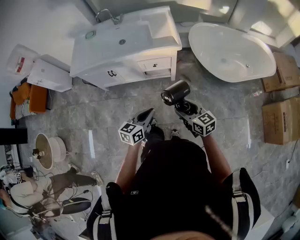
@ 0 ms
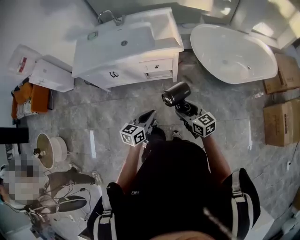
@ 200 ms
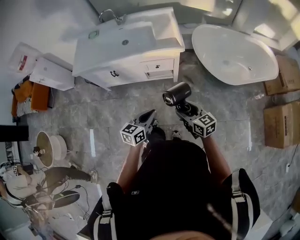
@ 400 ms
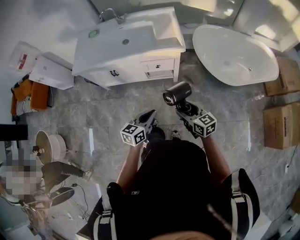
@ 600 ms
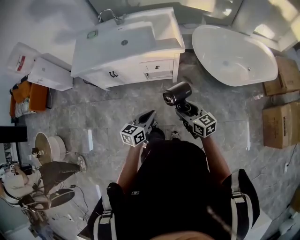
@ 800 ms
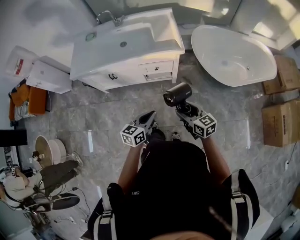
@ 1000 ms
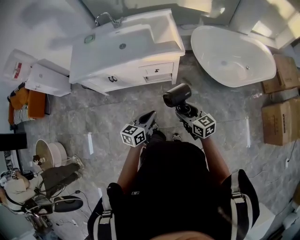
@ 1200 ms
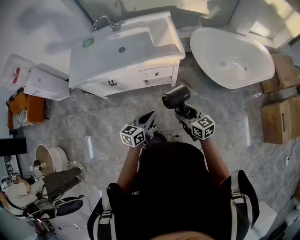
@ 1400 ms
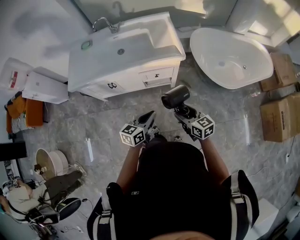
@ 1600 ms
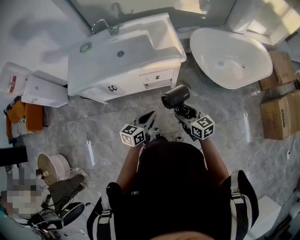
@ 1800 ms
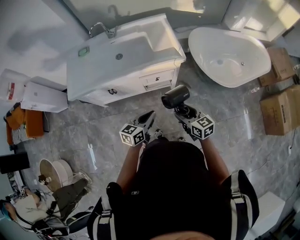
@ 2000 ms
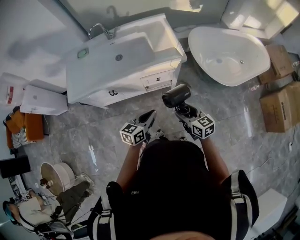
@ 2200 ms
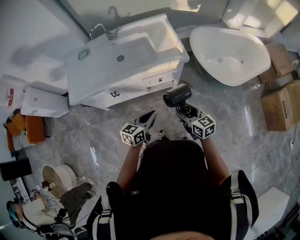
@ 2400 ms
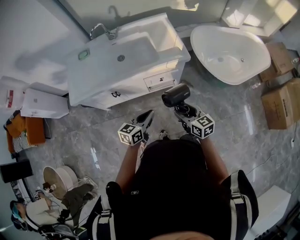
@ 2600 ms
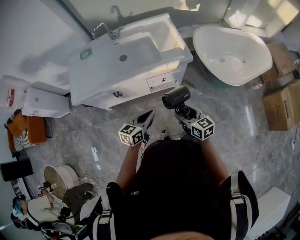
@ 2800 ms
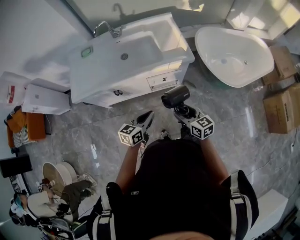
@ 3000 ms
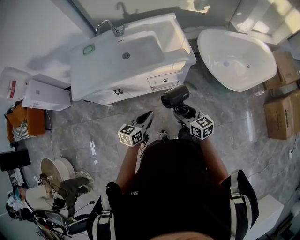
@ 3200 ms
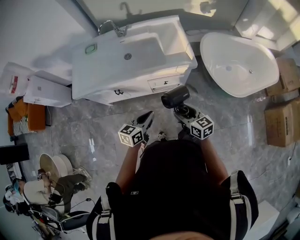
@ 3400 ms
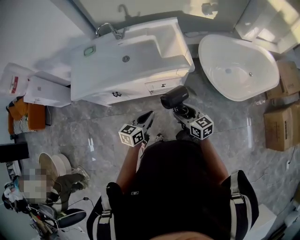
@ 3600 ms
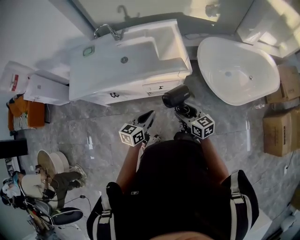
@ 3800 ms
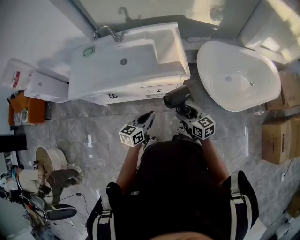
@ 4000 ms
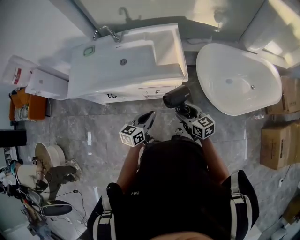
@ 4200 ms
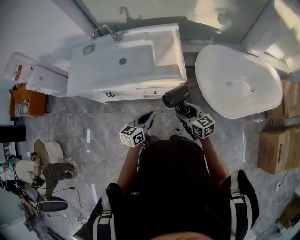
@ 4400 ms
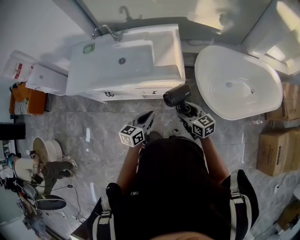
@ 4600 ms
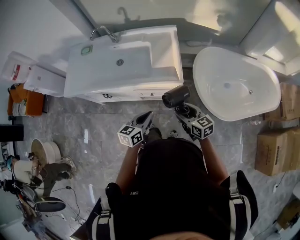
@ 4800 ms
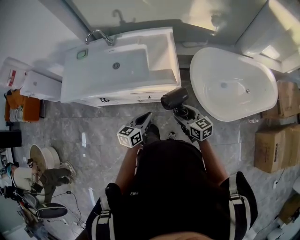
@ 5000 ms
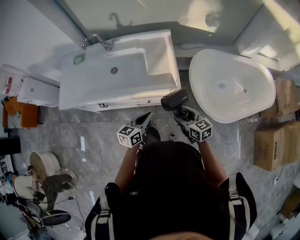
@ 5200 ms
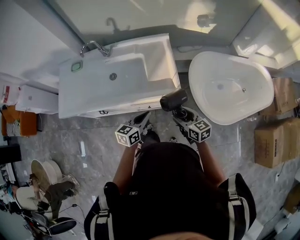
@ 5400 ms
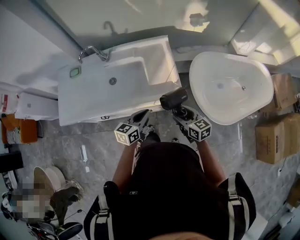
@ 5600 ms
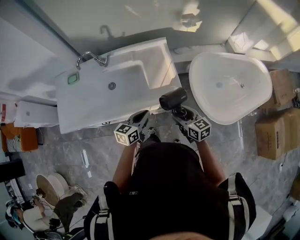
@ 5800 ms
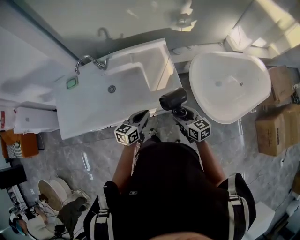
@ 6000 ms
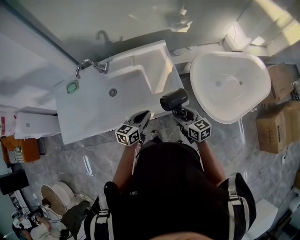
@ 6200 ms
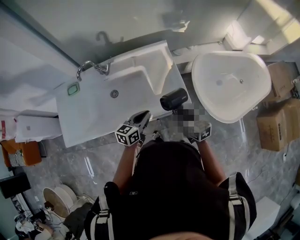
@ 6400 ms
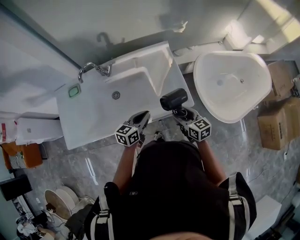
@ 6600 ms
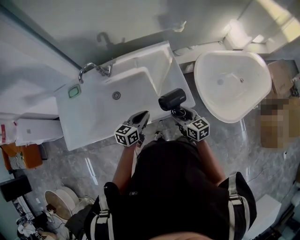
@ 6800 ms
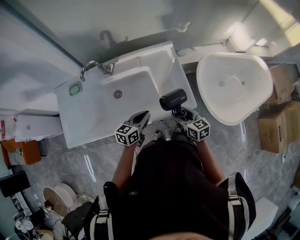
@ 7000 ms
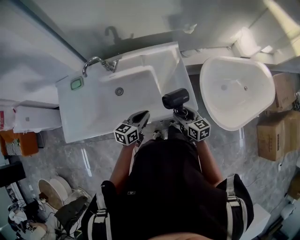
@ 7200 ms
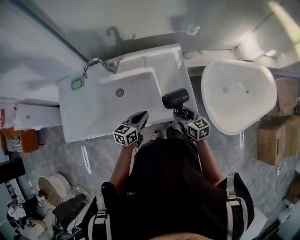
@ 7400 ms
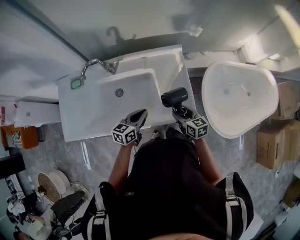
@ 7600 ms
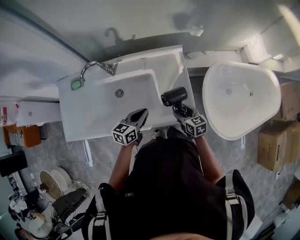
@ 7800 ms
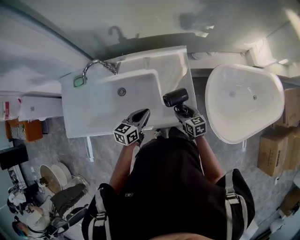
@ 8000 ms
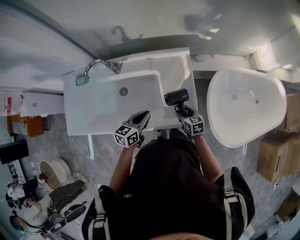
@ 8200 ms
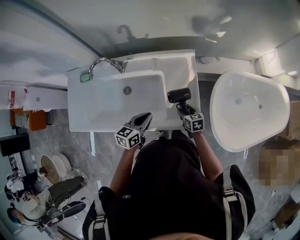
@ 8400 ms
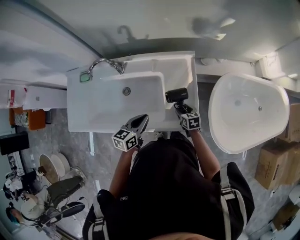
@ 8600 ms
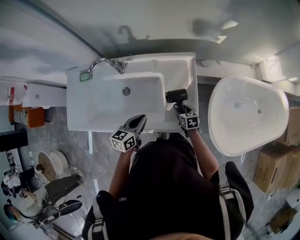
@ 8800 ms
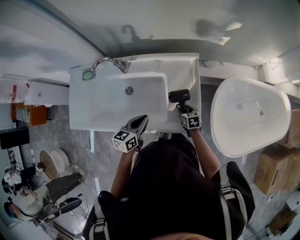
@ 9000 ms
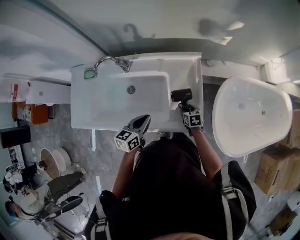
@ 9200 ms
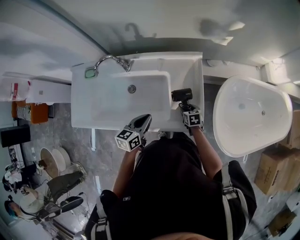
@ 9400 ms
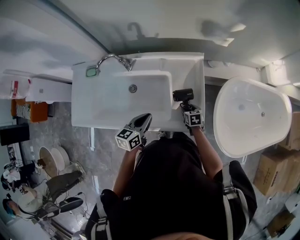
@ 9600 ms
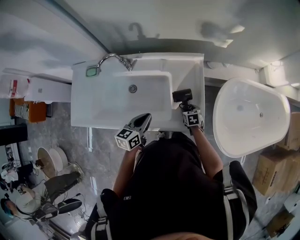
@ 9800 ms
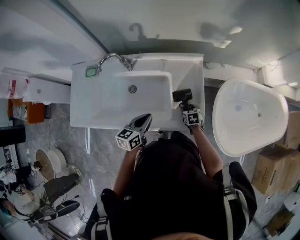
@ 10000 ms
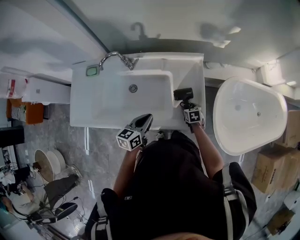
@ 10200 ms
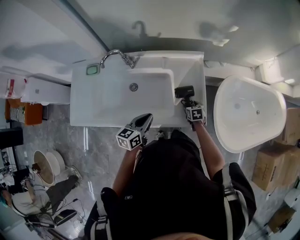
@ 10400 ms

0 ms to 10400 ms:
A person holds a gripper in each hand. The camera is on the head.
0 ms to 1400 ms: The two grippers go roughly 5 cm forward.
1400 ms to 3000 ms: Both grippers travel together to the left and forward, about 15 cm.
3000 ms to 4400 ms: The two grippers go about 20 cm to the right and forward.
4400 ms to 6000 ms: Both grippers travel together forward, about 15 cm.
6000 ms to 7400 ms: The left gripper moves to the left and forward, about 10 cm; the right gripper moves forward and to the left, approximately 10 cm.
7400 ms to 9000 ms: The right gripper shifts about 20 cm downward and forward, and turns by some 20 degrees.
9000 ms to 10400 ms: The grippers make only small movements.

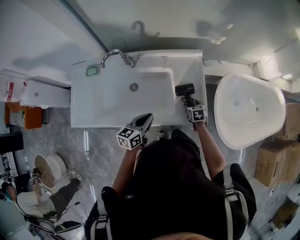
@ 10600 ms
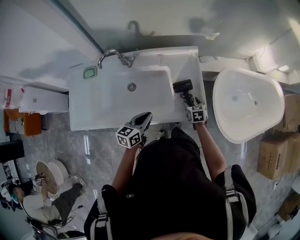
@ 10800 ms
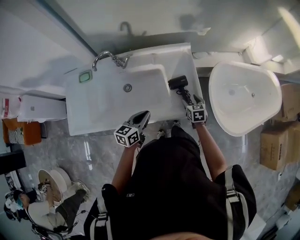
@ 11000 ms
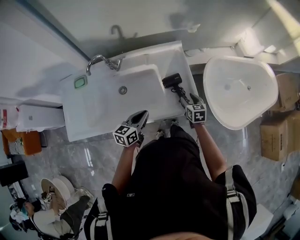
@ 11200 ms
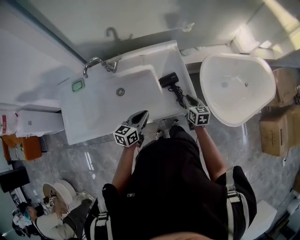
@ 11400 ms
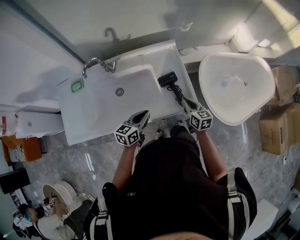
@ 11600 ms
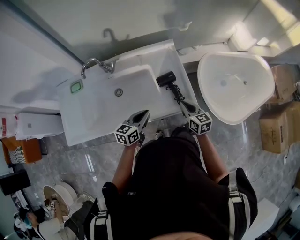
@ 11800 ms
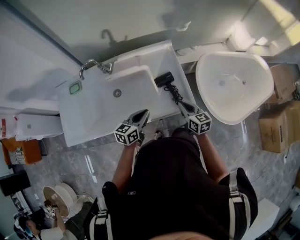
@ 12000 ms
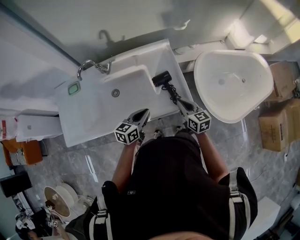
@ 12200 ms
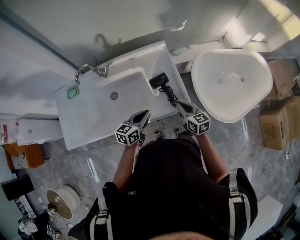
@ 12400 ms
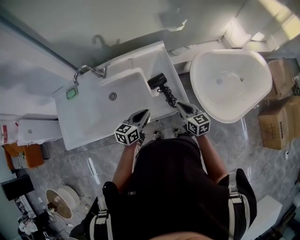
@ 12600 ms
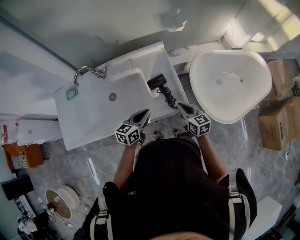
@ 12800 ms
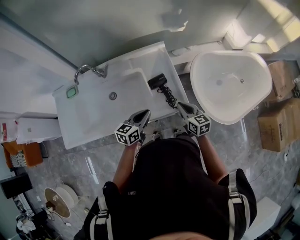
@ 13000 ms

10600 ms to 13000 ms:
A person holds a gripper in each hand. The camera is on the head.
10600 ms to 11800 ms: The right gripper moves upward and backward, roughly 20 cm, angles its fingers upward, by roughly 30 degrees, and closes.
11800 ms to 13000 ms: The left gripper heads to the right, covering roughly 5 cm.

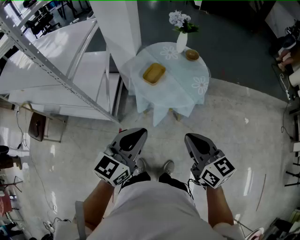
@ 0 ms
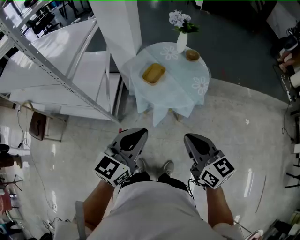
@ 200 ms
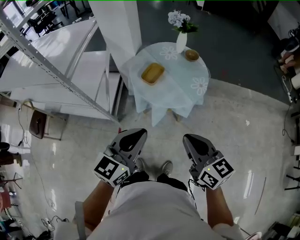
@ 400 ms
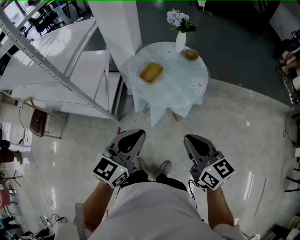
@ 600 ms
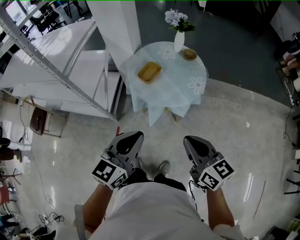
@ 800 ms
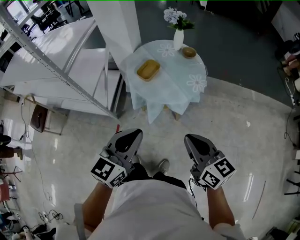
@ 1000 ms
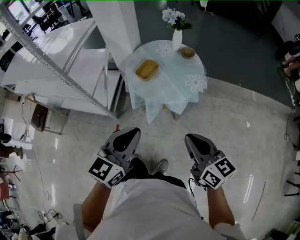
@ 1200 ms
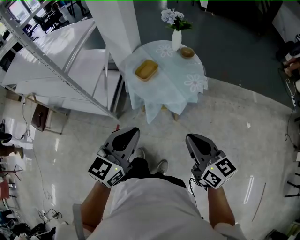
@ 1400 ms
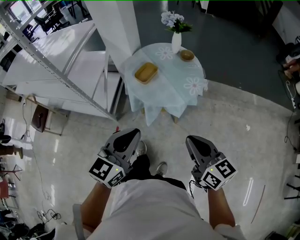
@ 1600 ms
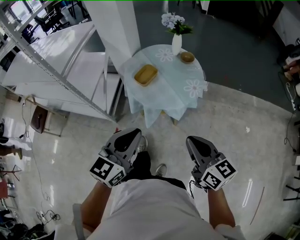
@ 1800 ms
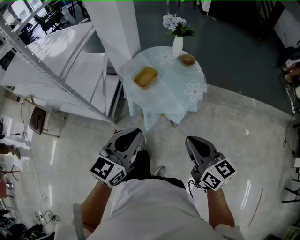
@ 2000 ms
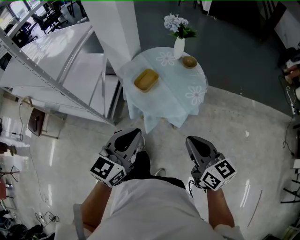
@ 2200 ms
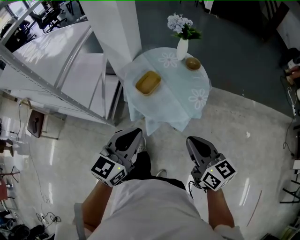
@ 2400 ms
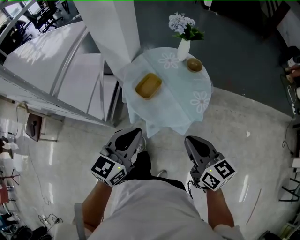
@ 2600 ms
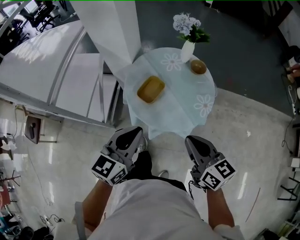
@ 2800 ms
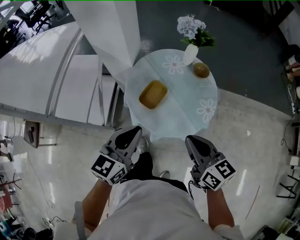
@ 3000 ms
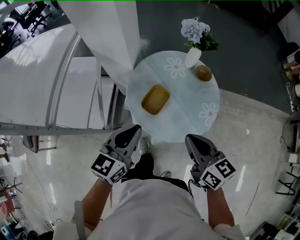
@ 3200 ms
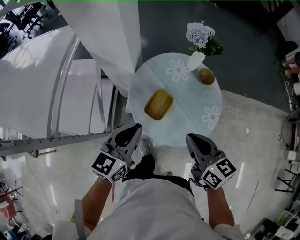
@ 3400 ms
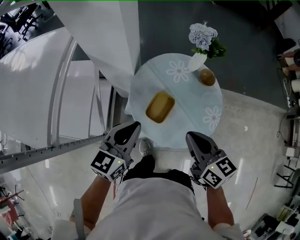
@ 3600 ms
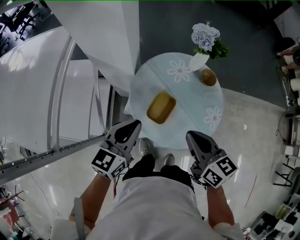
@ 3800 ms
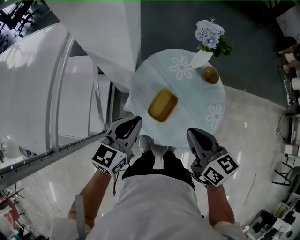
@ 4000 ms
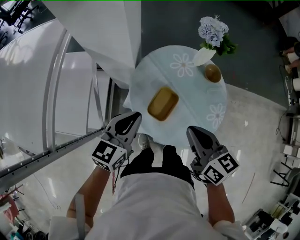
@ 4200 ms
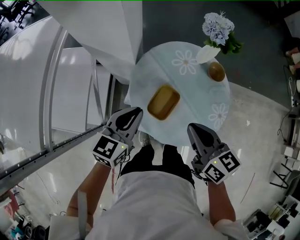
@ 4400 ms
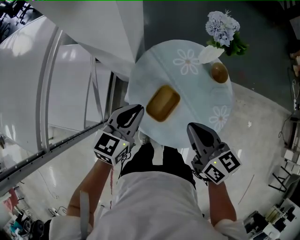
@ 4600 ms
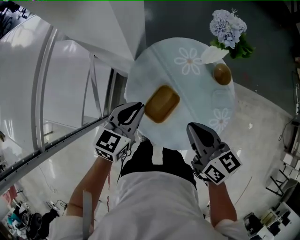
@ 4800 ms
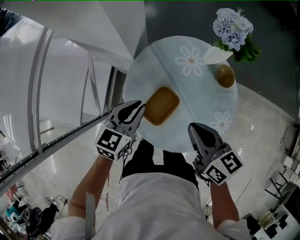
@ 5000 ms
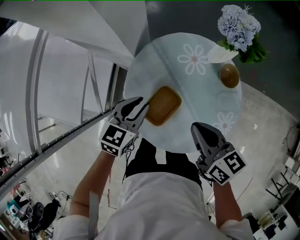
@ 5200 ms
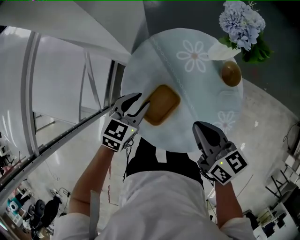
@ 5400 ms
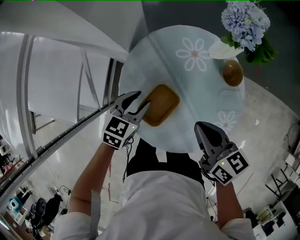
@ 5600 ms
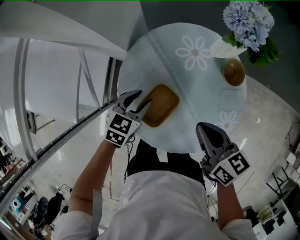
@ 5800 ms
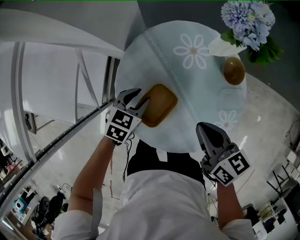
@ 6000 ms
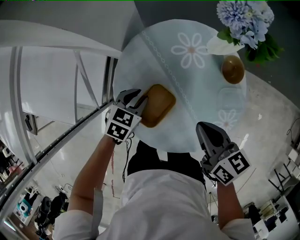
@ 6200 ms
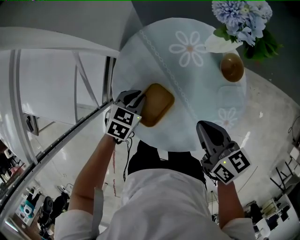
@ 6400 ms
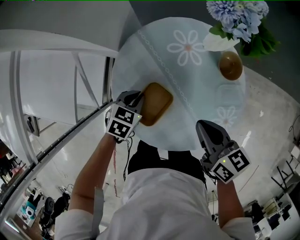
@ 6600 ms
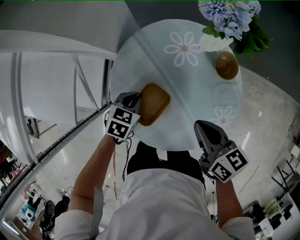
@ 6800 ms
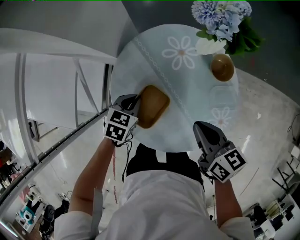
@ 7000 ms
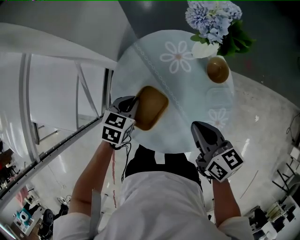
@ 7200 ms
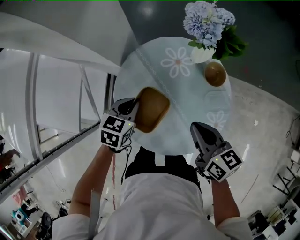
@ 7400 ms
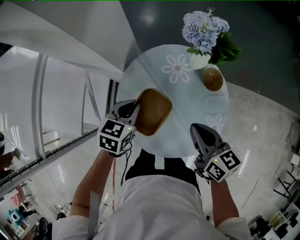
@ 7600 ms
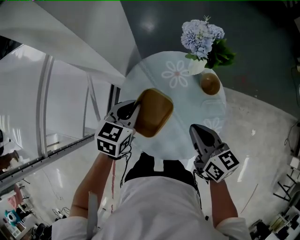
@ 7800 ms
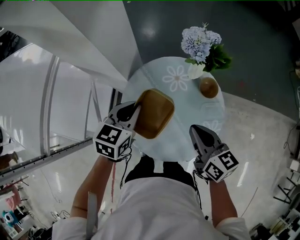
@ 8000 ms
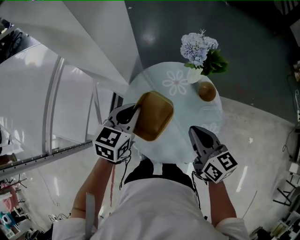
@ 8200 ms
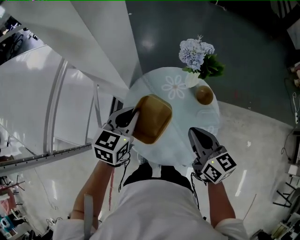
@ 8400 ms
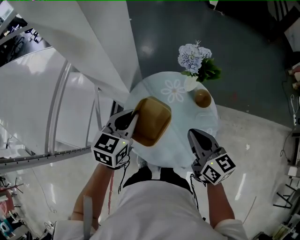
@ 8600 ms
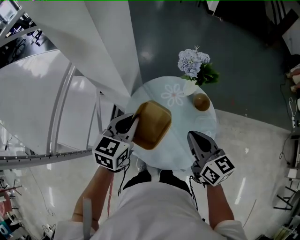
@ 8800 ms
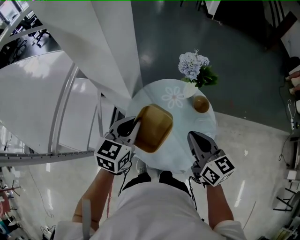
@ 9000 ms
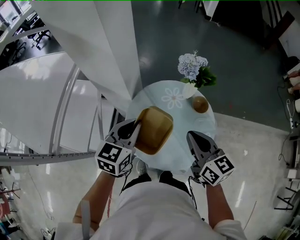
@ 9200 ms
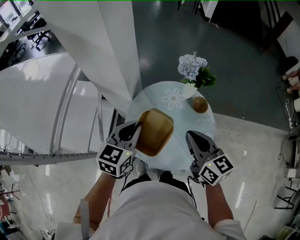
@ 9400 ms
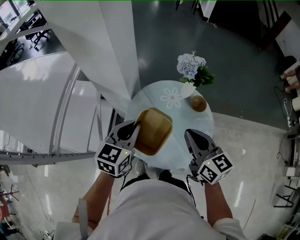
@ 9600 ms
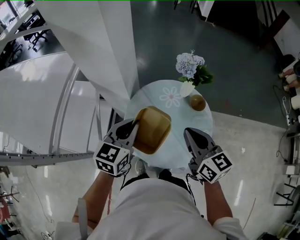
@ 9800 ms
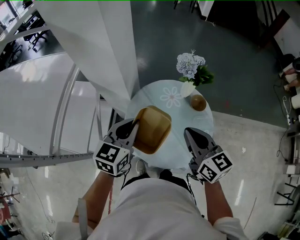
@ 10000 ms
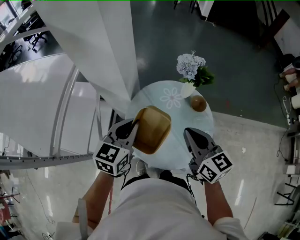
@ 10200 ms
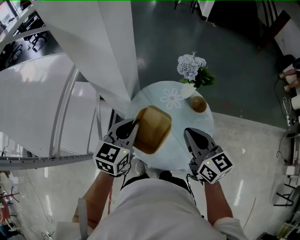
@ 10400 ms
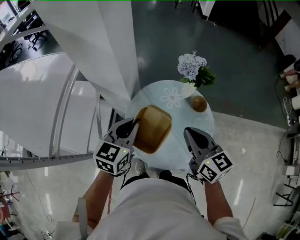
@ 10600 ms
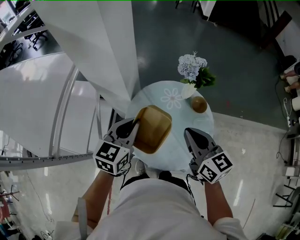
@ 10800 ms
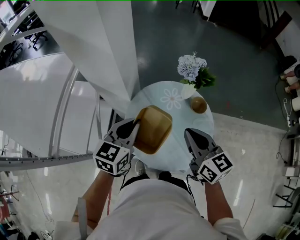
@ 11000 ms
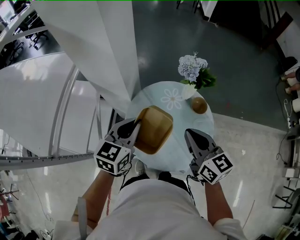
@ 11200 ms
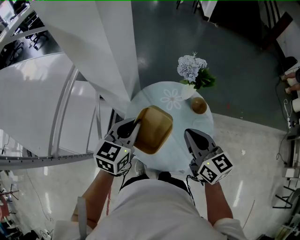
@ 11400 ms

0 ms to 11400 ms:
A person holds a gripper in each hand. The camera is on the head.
0 ms to 1400 ms: The grippers both shift to the right by some 10 cm.
1400 ms to 2800 ms: The grippers both shift forward by about 20 cm.
2800 ms to 4200 ms: The grippers both shift forward and to the left by about 20 cm.
4200 ms to 5600 ms: The right gripper travels downward, forward and to the right by some 15 cm. Meanwhile the left gripper shifts some 20 cm downward and forward, swivels roughly 20 degrees, and opens up.
5600 ms to 7200 ms: The left gripper closes its fingers.
7200 ms to 8600 ms: The right gripper moves upward, about 15 cm; the left gripper shifts approximately 25 cm upward, and changes its angle by approximately 30 degrees.
8600 ms to 10000 ms: The right gripper changes place by about 5 cm. Meanwhile the left gripper changes place by some 5 cm.
10000 ms to 11400 ms: The grippers move only a little.
